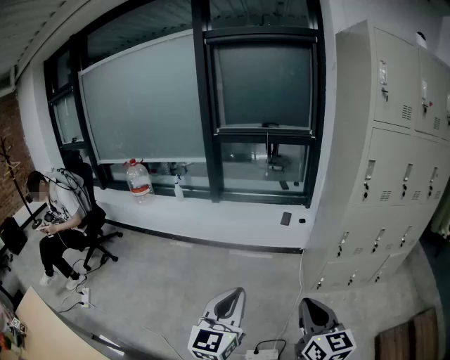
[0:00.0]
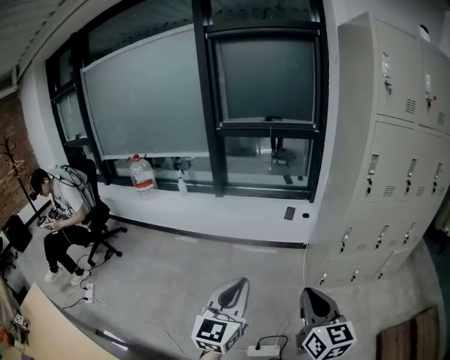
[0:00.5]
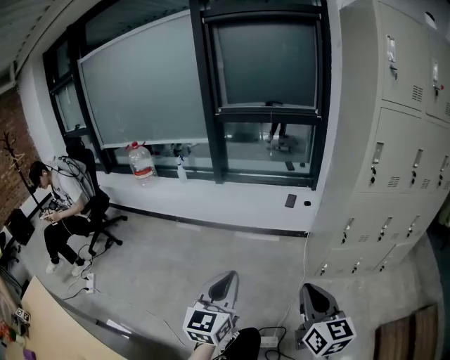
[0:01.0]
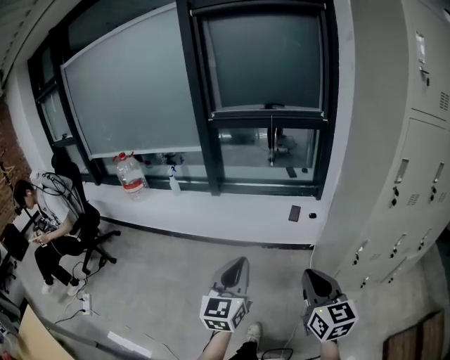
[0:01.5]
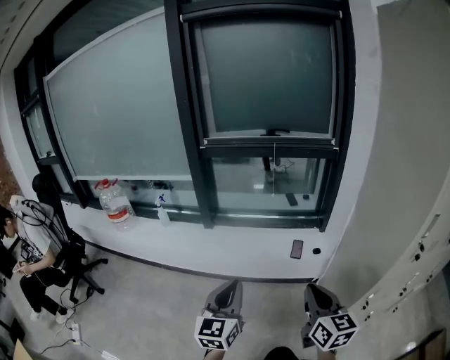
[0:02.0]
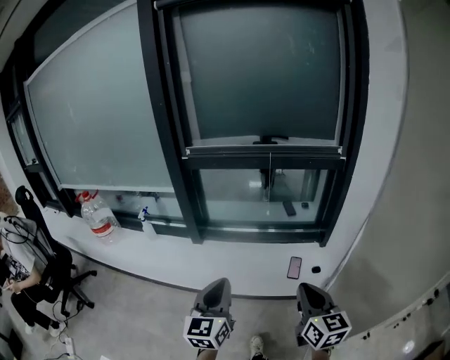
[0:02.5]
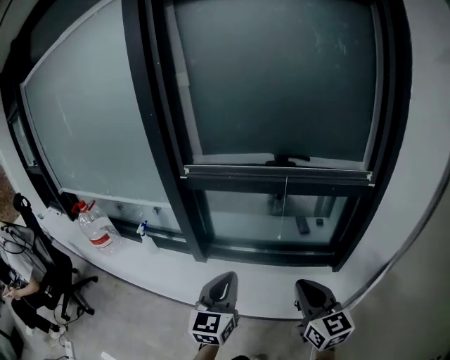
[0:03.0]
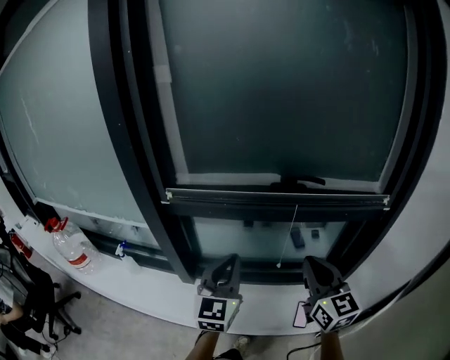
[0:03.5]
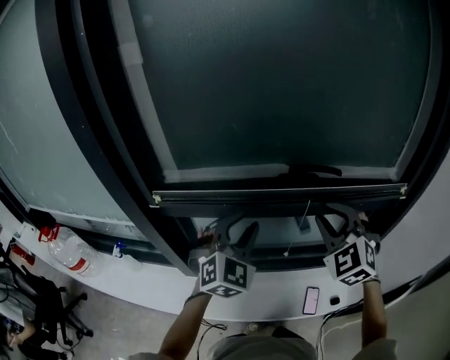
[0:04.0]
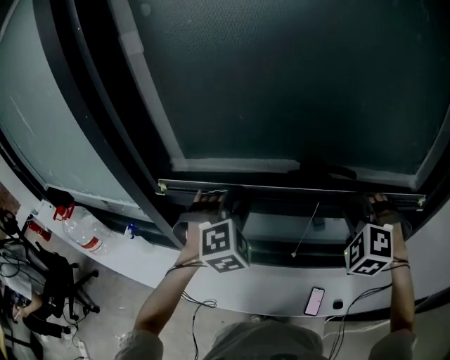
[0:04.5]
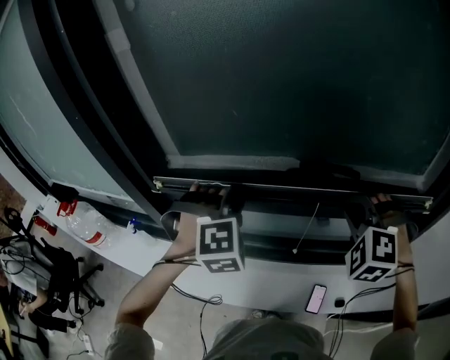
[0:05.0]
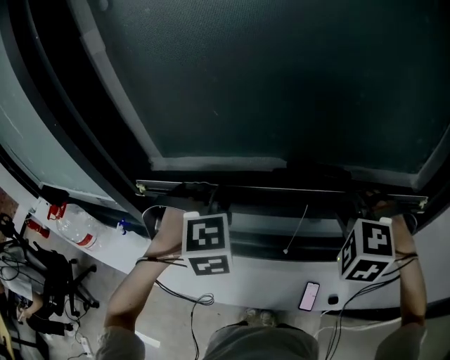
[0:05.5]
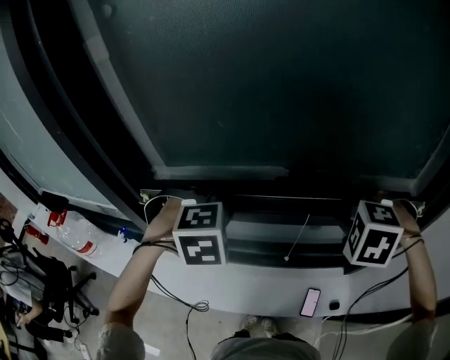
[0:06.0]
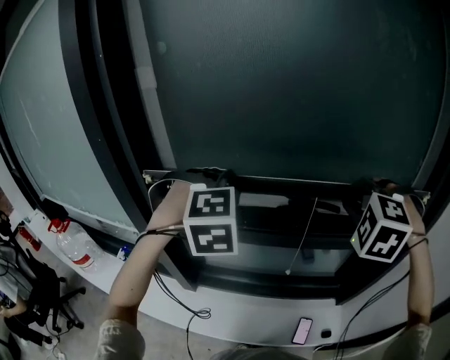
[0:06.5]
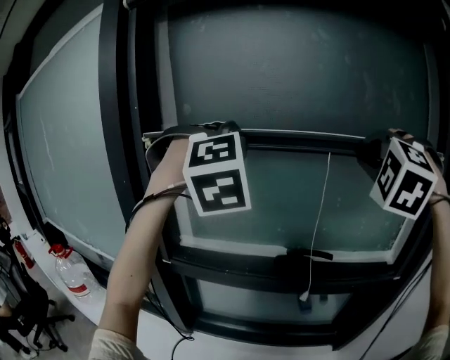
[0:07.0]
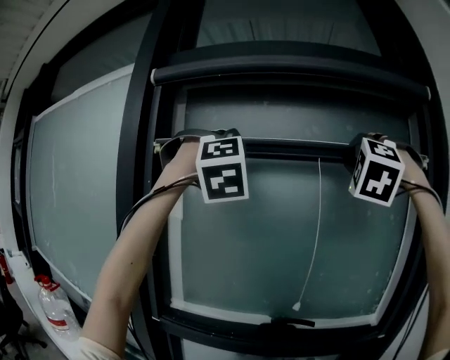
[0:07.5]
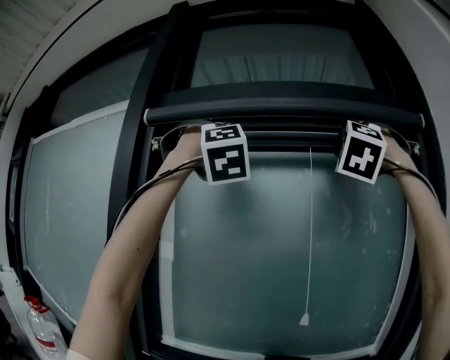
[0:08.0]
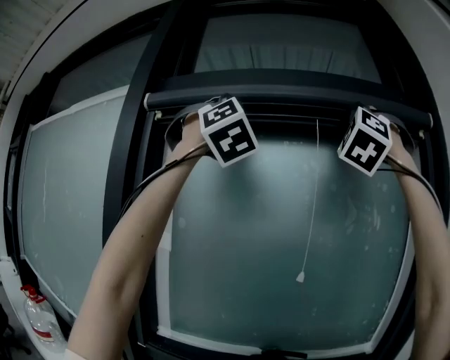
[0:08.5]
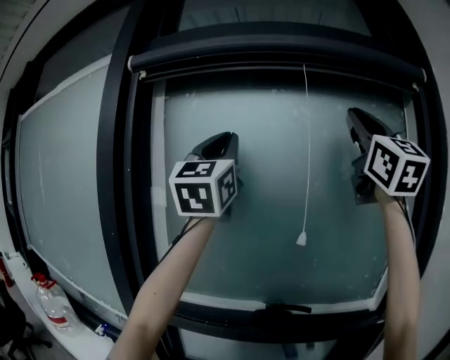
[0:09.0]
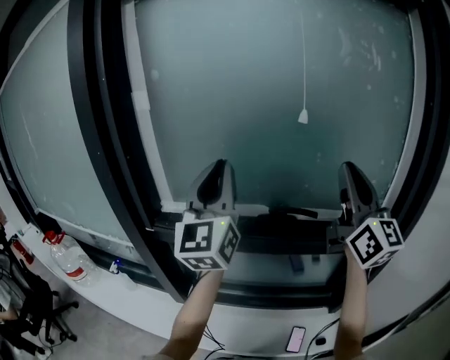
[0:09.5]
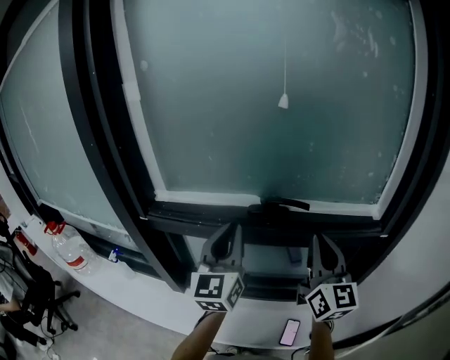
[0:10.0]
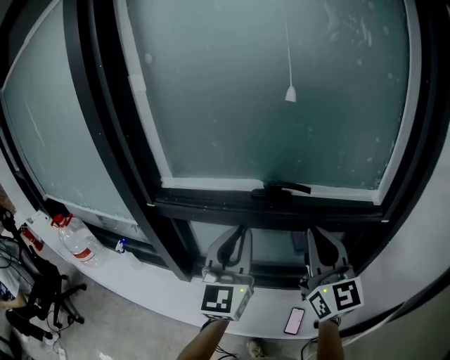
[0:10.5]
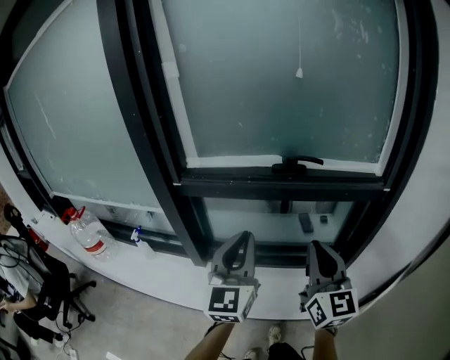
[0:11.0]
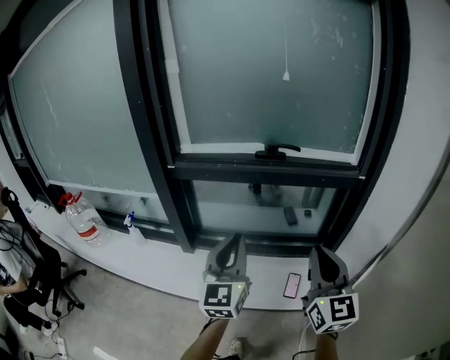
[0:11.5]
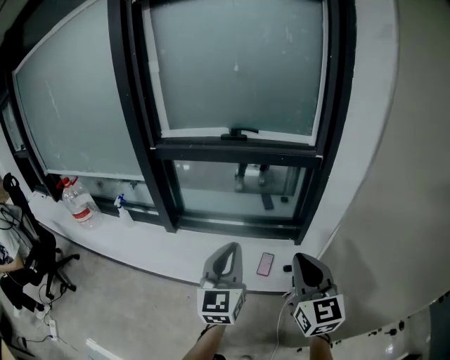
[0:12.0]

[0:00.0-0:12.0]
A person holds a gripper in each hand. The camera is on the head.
0:00.0 to 0:02.0: Both grippers are carried forward, approximately 50 cm.
0:02.0 to 0:04.0: The two grippers travel together, forward, about 70 cm. The right gripper rotates around the line of its fingers by approximately 60 degrees, counterclockwise from behind. Meanwhile the left gripper twists roughly 40 degrees clockwise, seen from behind, and opens.
0:04.0 to 0:06.0: The right gripper shifts by approximately 5 cm, and tips its fingers downward by some 40 degrees; the left gripper angles its fingers downward, by about 50 degrees, and closes.
0:06.0 to 0:08.0: Both grippers travel together upward, approximately 70 cm. The left gripper points its fingers some 70 degrees further upward. Meanwhile the right gripper angles its fingers upward, by approximately 70 degrees.
0:08.0 to 0:10.0: Both grippers travel together downward, some 60 cm. The left gripper rolls counterclockwise, seen from behind, by roughly 90 degrees. The right gripper rolls clockwise, seen from behind, by about 100 degrees.
0:10.0 to 0:12.0: The pair of grippers is taken backward, approximately 40 cm.

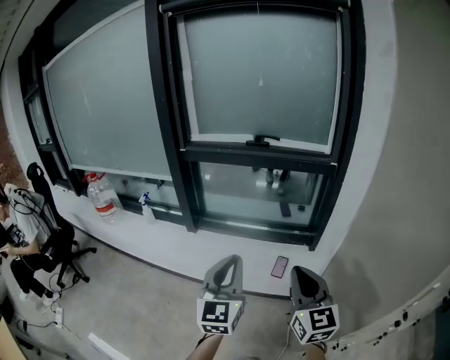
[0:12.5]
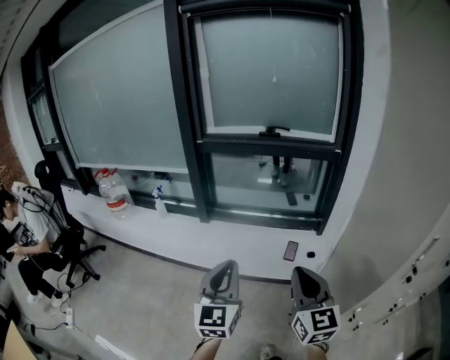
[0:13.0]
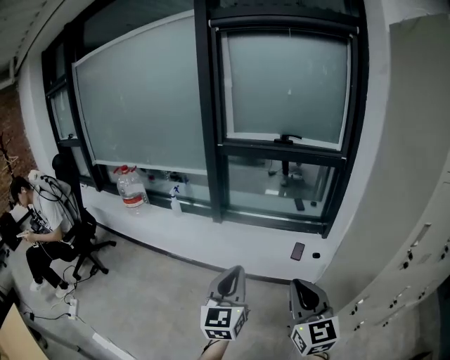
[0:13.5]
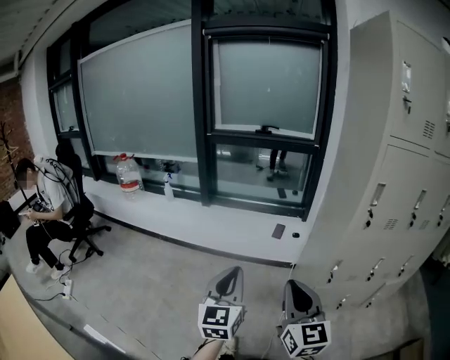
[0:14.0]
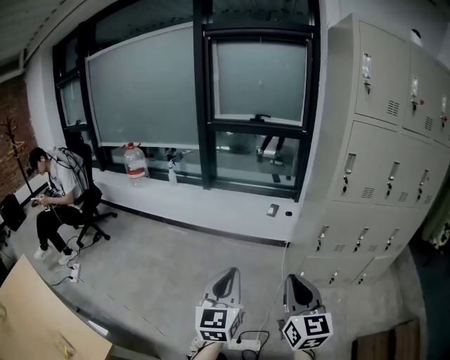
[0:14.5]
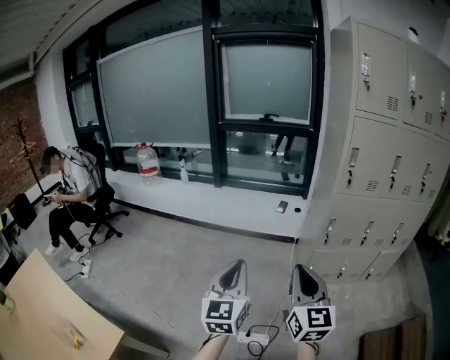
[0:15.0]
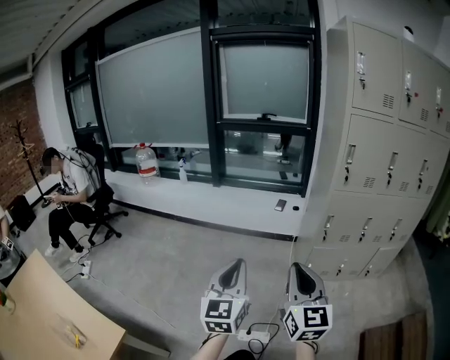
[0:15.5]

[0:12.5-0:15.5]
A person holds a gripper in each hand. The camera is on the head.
0:12.5 to 0:14.0: The two grippers travel together, backward, roughly 40 cm.
0:14.0 to 0:15.5: Both grippers move backward, about 25 cm.

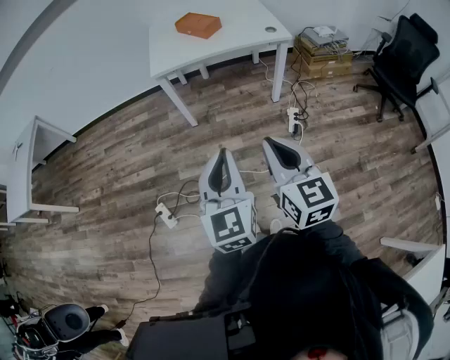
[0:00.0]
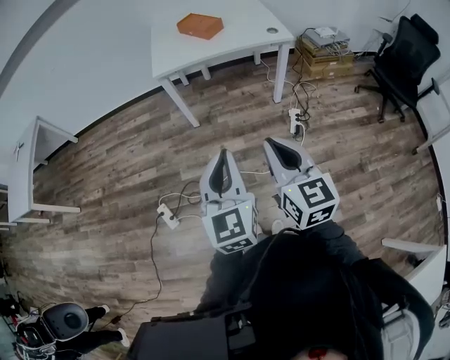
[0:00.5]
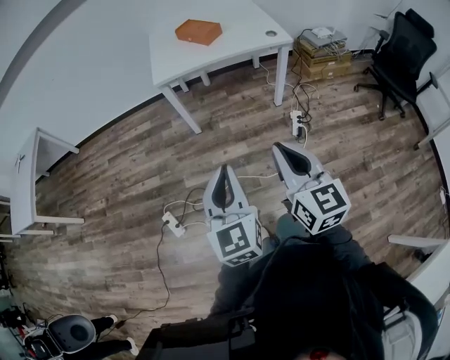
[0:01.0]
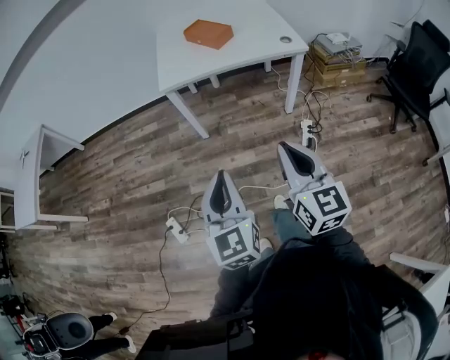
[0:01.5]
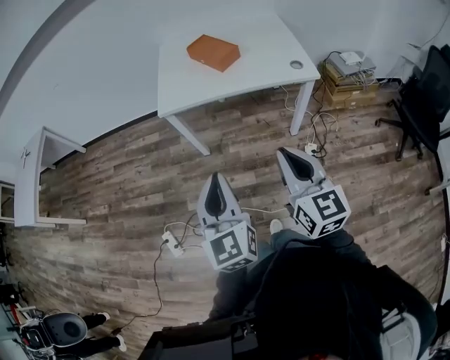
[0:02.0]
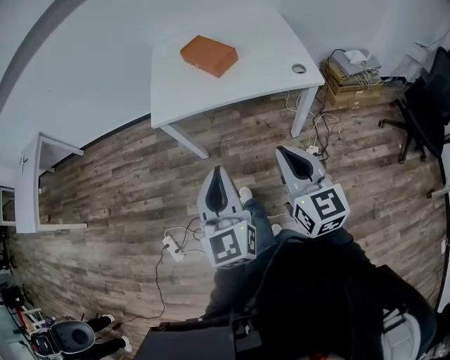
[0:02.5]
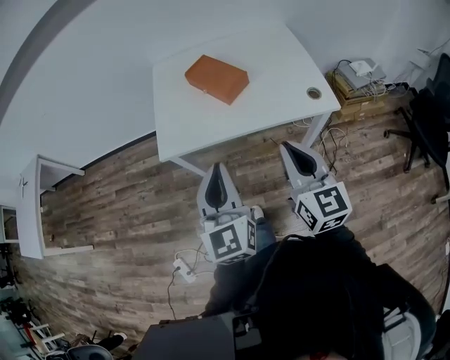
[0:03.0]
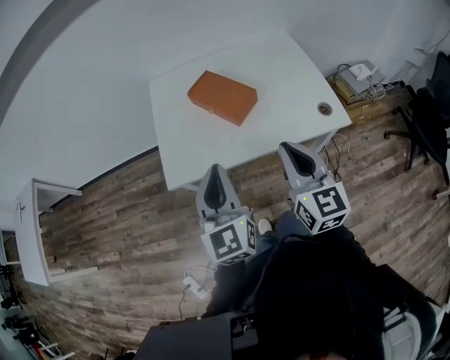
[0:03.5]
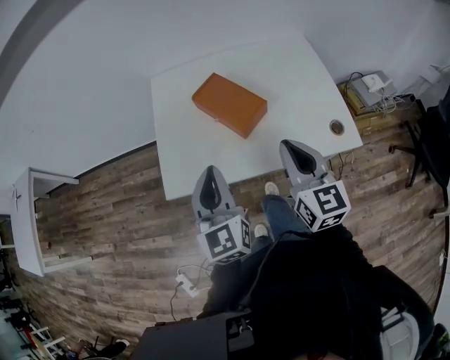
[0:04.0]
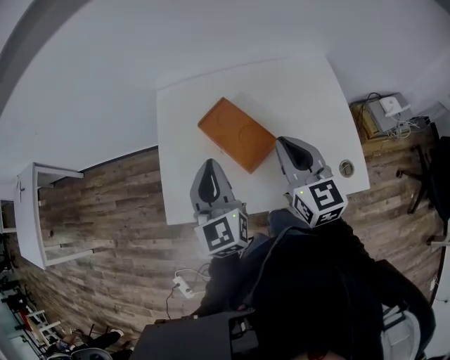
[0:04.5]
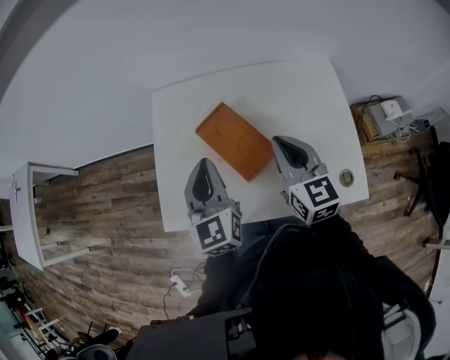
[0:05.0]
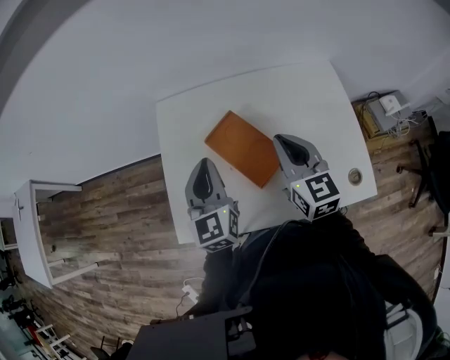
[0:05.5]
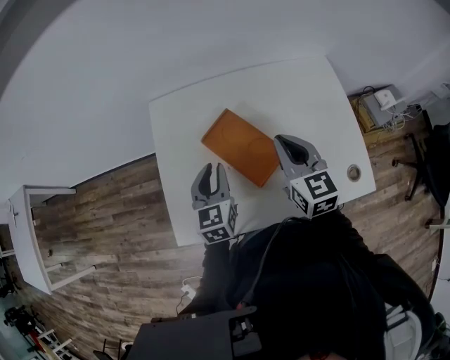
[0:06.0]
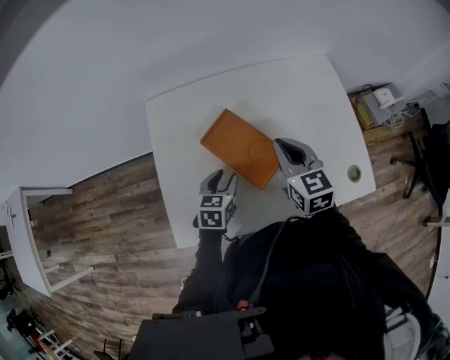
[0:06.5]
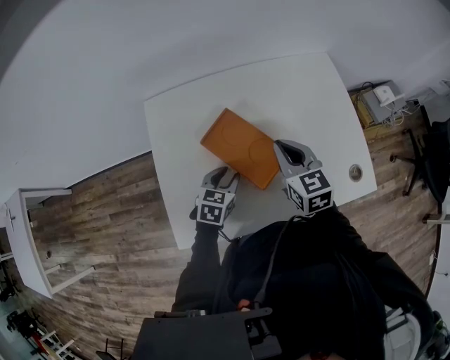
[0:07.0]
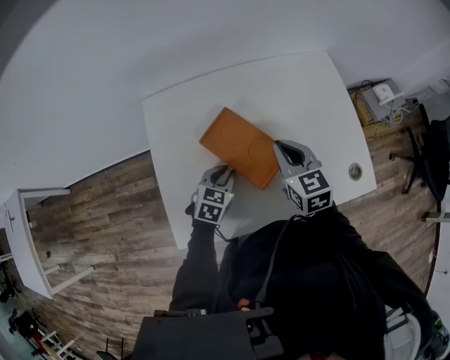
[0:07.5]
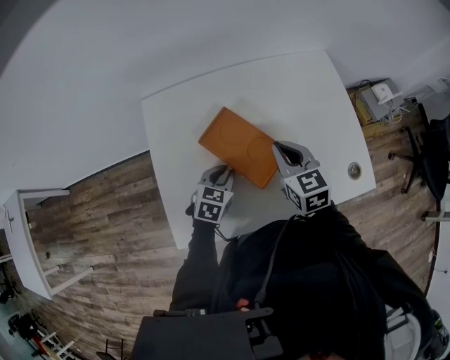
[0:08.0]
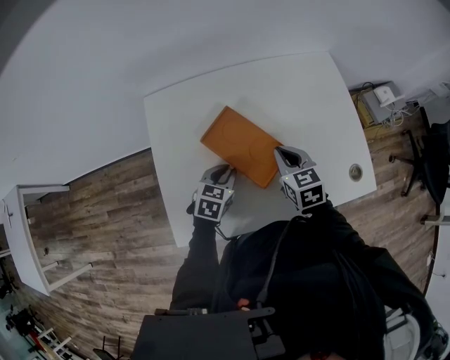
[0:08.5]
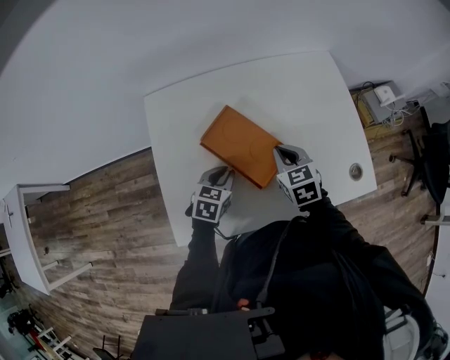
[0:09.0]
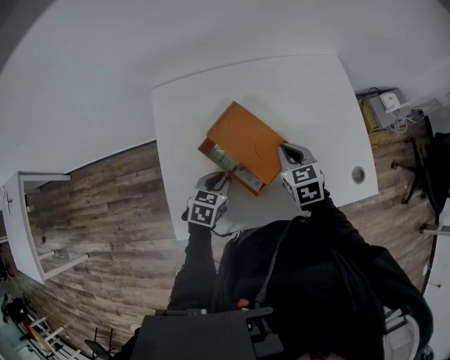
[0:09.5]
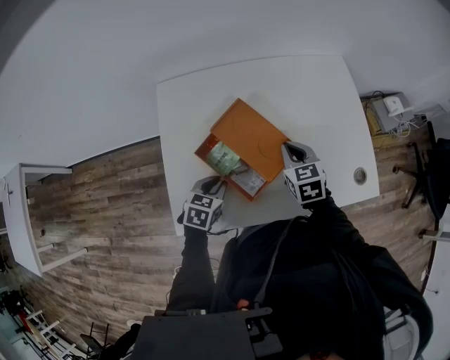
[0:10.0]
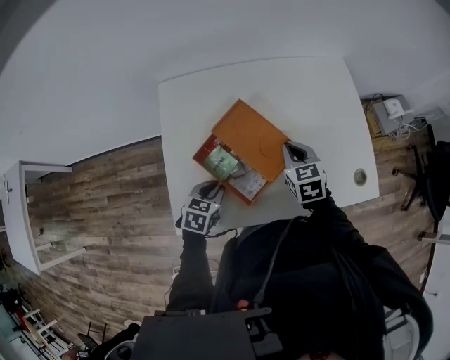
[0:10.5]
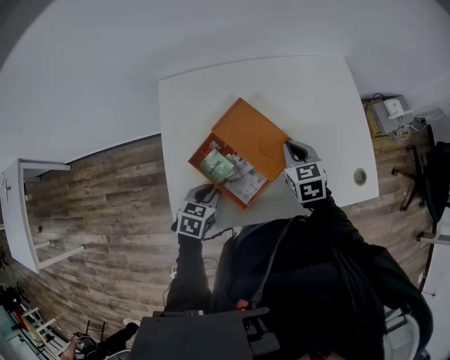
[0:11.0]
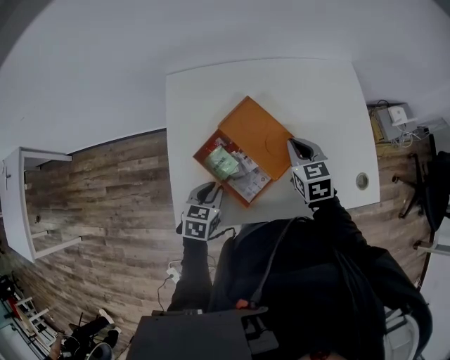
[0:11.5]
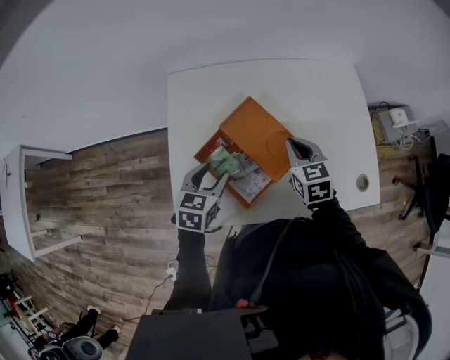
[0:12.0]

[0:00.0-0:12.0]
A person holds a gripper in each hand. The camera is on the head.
0:00.0 to 0:02.0: The grippers both shift forward by some 25 cm.
0:02.0 to 0:04.0: Both grippers are carried forward, roughly 50 cm.
0:04.0 to 0:06.0: The left gripper moves forward and downward, some 25 cm, and turns by roughly 20 degrees; the right gripper shifts roughly 25 cm forward.
0:06.0 to 0:08.0: The left gripper is displaced downward by roughly 15 cm, and swivels approximately 40 degrees; the right gripper goes about 5 cm downward.
0:08.0 to 0:10.0: The left gripper is displaced backward and to the left by about 10 cm. Meanwhile the right gripper is displaced downward by roughly 5 cm.
0:10.0 to 0:12.0: The left gripper goes approximately 5 cm upward, and opens.
